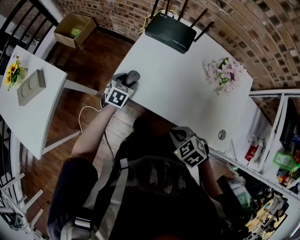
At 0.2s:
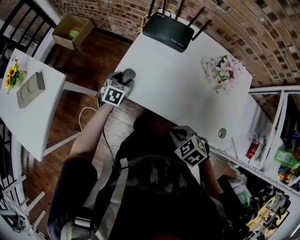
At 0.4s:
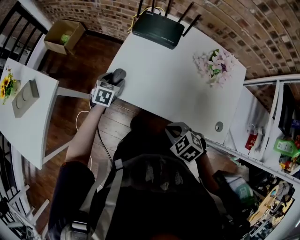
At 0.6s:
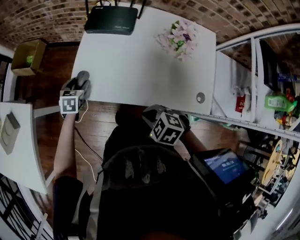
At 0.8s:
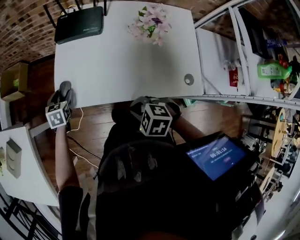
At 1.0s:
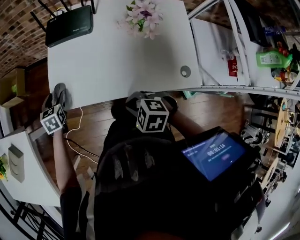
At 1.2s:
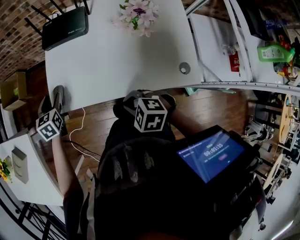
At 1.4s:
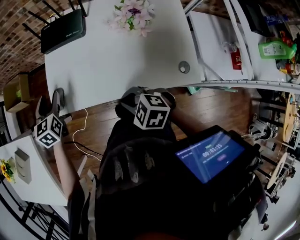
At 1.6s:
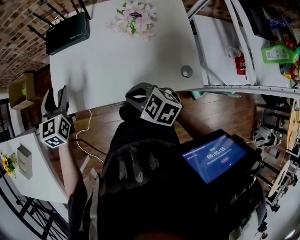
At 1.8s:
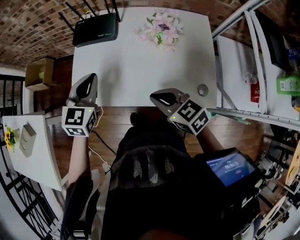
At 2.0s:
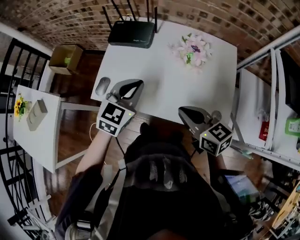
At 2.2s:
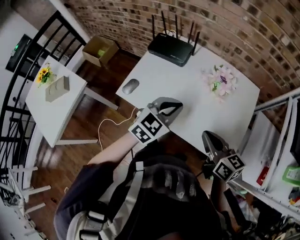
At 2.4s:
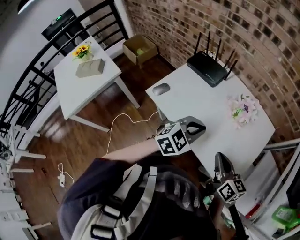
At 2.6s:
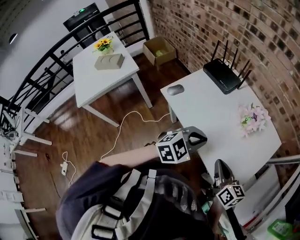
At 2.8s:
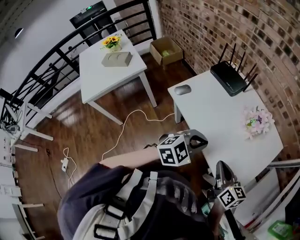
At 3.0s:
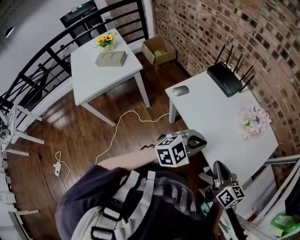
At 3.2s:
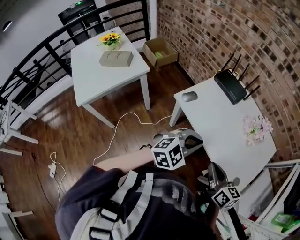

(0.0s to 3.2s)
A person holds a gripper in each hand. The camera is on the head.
0.0s - 1.6s: The right gripper moves to the right and upward, approximately 10 cm, and swivels about 30 degrees, while the left gripper shifts roughly 20 cm upward, and changes its angle by about 20 degrees.
1.6s - 3.2s: The left gripper moves backward, some 25 cm, changes its angle by approximately 20 degrees, and closes its fingers. The right gripper shifts some 15 cm backward and upward, goes to the right and returns, approximately 15 cm each way, and turns by roughly 30 degrees.

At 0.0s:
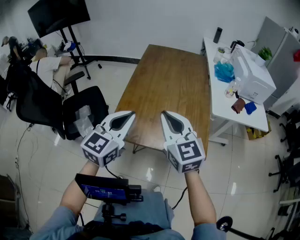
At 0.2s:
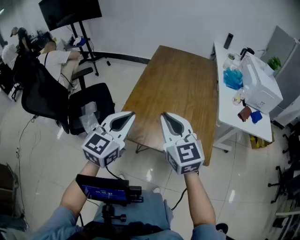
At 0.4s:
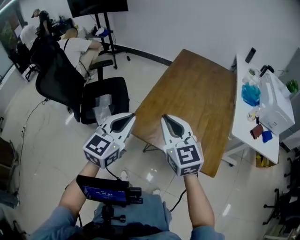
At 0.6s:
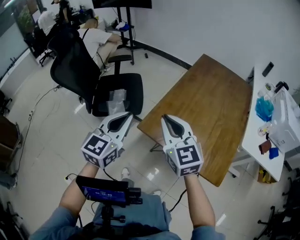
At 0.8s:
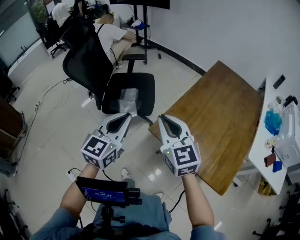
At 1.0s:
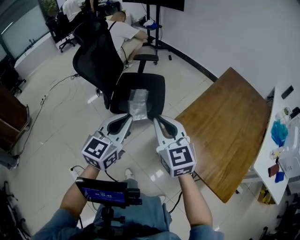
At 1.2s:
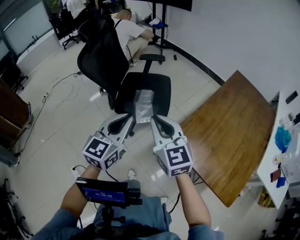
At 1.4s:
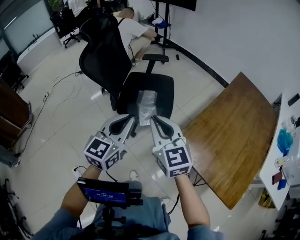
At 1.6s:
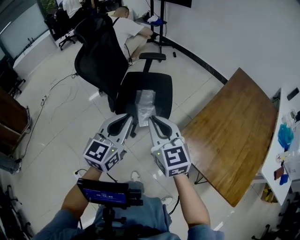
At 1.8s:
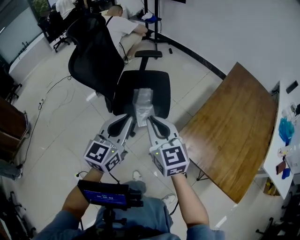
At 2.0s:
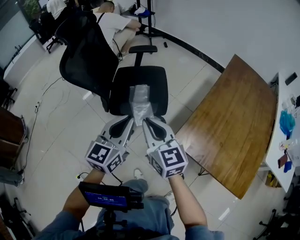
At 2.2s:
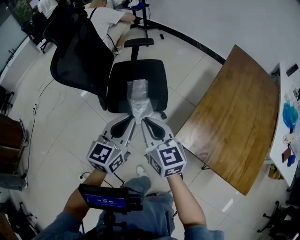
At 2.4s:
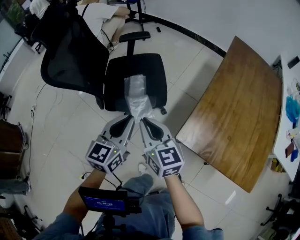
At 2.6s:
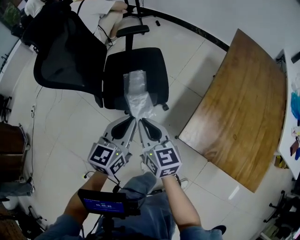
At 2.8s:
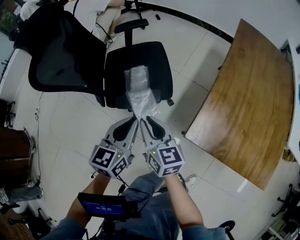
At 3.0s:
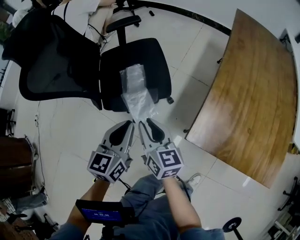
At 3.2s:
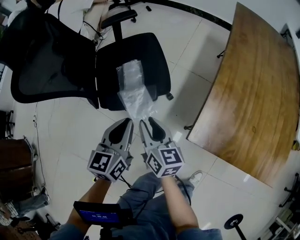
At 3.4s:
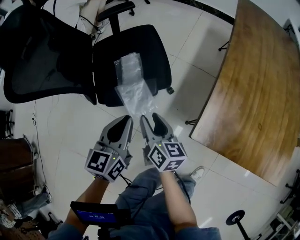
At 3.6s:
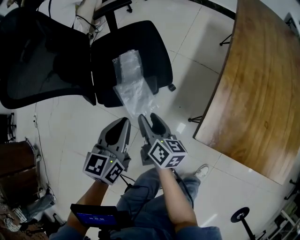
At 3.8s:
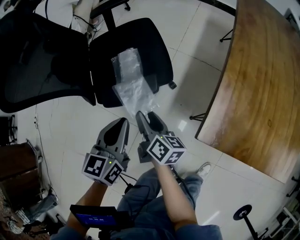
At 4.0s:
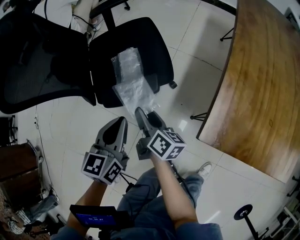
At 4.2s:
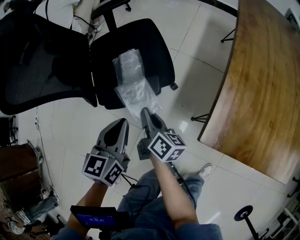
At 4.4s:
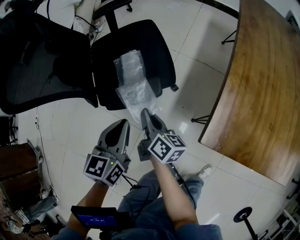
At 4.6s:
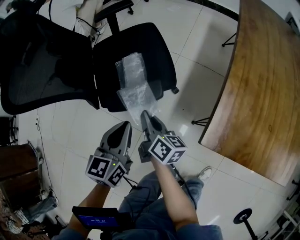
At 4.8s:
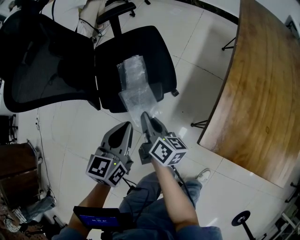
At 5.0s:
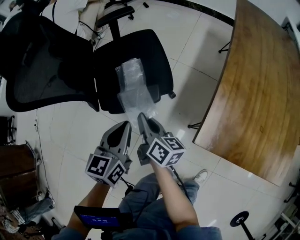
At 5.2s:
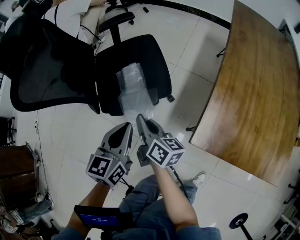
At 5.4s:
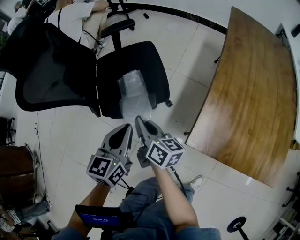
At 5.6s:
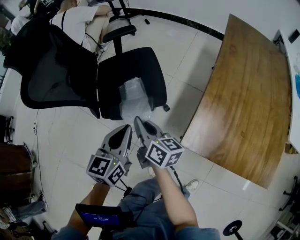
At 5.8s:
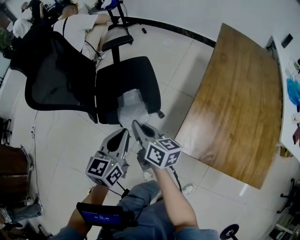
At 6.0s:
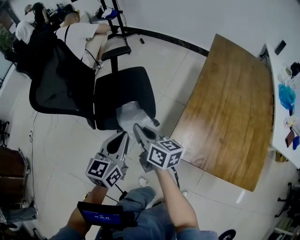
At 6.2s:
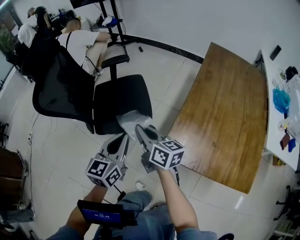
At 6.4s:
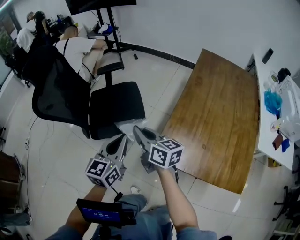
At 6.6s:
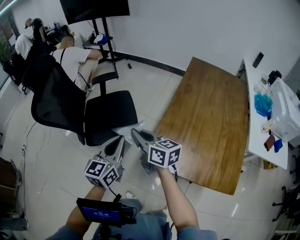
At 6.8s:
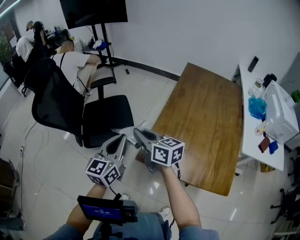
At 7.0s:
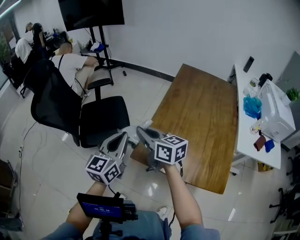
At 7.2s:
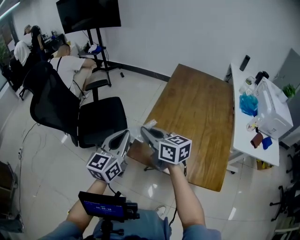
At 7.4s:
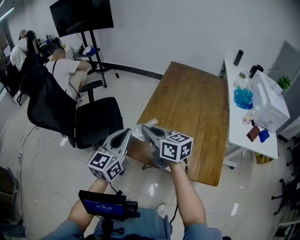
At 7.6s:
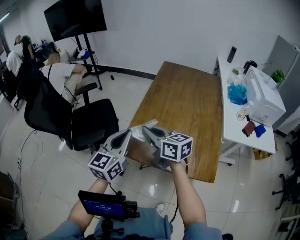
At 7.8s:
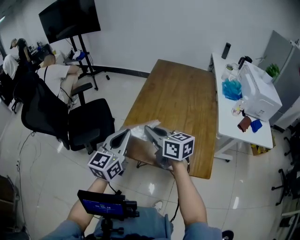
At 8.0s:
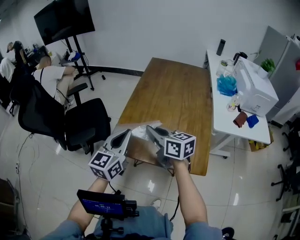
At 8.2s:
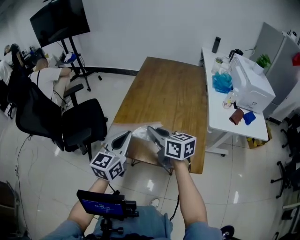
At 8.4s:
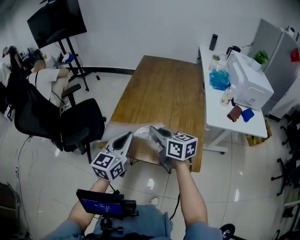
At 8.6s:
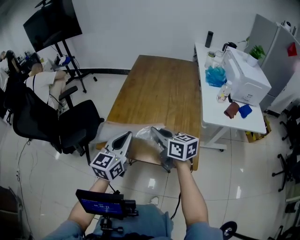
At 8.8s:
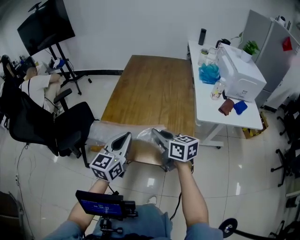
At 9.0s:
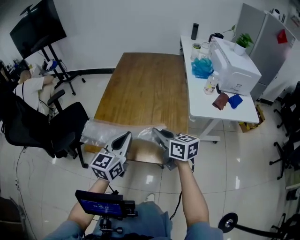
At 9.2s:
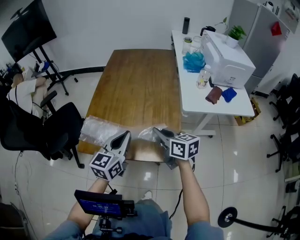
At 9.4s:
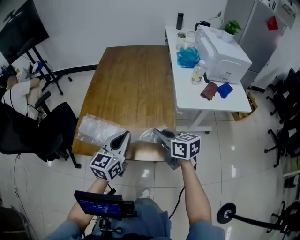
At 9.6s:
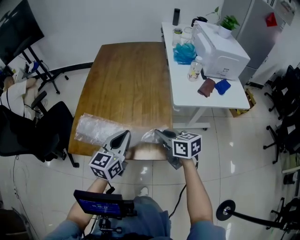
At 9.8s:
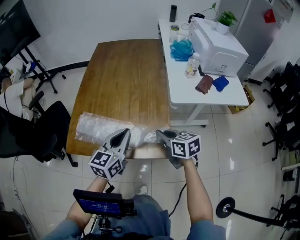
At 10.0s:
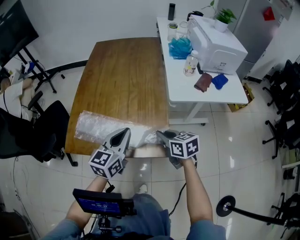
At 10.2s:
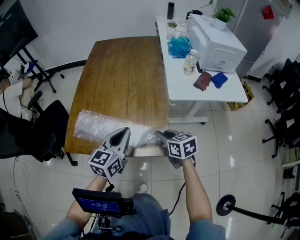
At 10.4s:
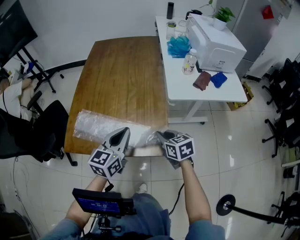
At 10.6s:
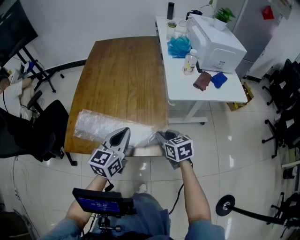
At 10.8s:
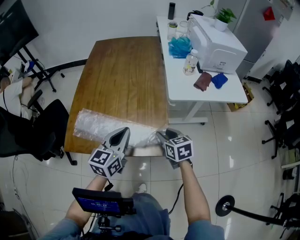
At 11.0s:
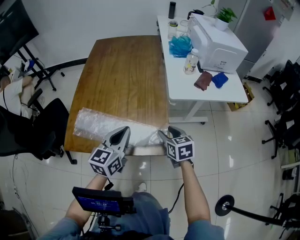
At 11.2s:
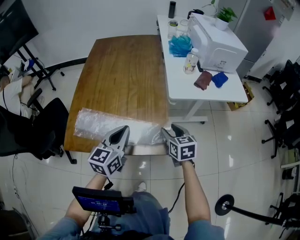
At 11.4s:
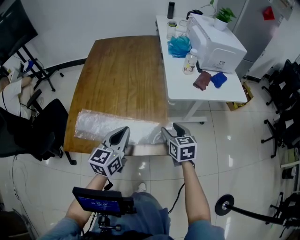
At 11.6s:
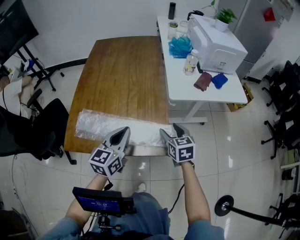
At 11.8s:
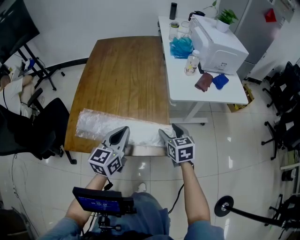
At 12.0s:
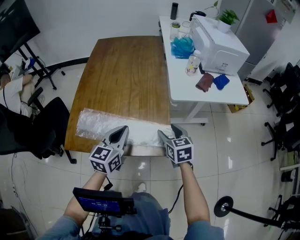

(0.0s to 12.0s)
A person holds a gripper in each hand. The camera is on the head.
0.0s - 1.6s: The right gripper moves about 40 cm, and changes its angle by roughly 30 degrees, while the left gripper ends up about 35 cm from where it was, and changes its angle by some 40 degrees.
1.6s - 3.0s: The right gripper heads downward, covering roughly 25 cm, and turns by about 40 degrees. The left gripper is displaced downward and forward by about 20 cm.
3.0s - 4.4s: The left gripper goes approximately 5 cm downward. Meanwhile the right gripper heads downward, covering about 10 cm, swivels some 30 degrees, and opens and closes again.
4.4s - 6.0s: The left gripper travels upward and to the right by roughly 15 cm. Meanwhile the right gripper shifts approximately 20 cm upward, and changes its angle by about 30 degrees.
6.0s - 7.6s: The right gripper travels to the right, upward and backward by some 30 cm, while the left gripper goes roughly 30 cm to the right and upward.
7.6s - 9.0s: Both grippers move to the right, roughly 20 cm.
9.0s - 10.4s: Both grippers travel together to the right and downward, some 15 cm. The right gripper turns by roughly 20 degrees.
10.4s - 12.0s: The right gripper opens.

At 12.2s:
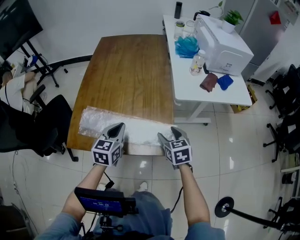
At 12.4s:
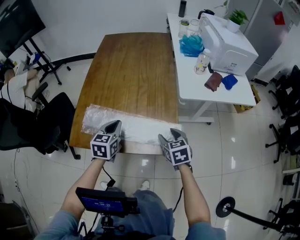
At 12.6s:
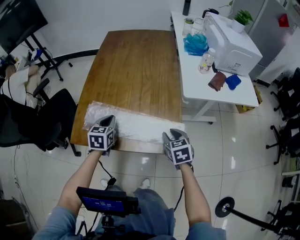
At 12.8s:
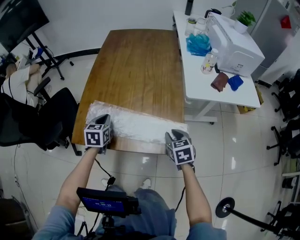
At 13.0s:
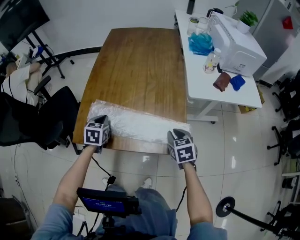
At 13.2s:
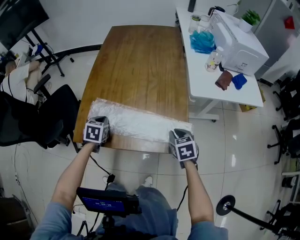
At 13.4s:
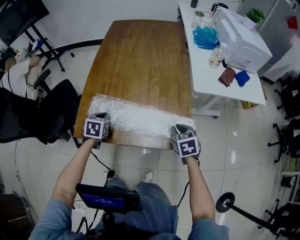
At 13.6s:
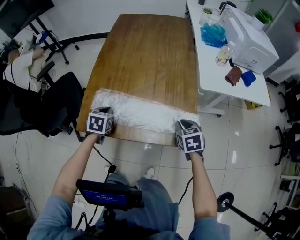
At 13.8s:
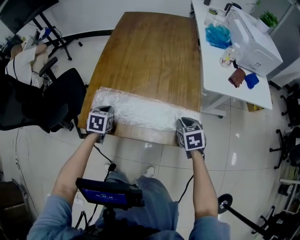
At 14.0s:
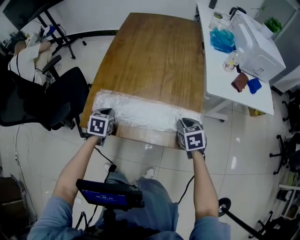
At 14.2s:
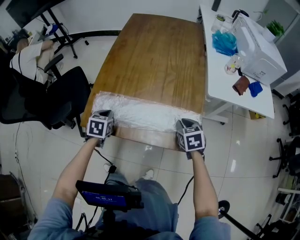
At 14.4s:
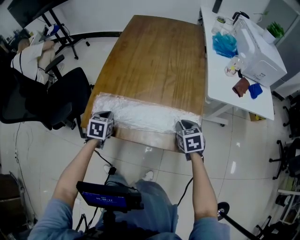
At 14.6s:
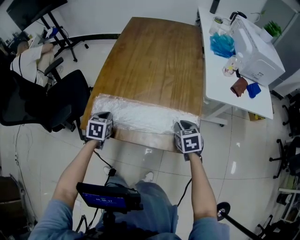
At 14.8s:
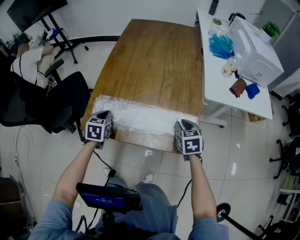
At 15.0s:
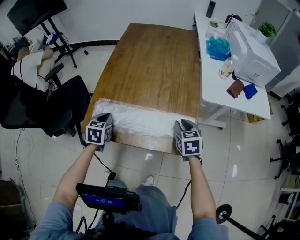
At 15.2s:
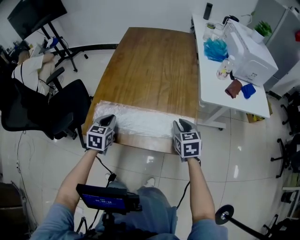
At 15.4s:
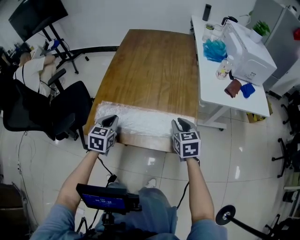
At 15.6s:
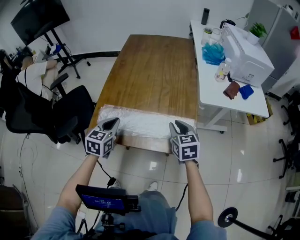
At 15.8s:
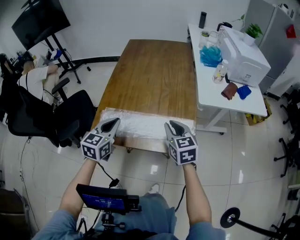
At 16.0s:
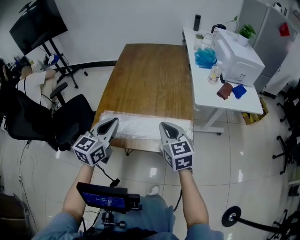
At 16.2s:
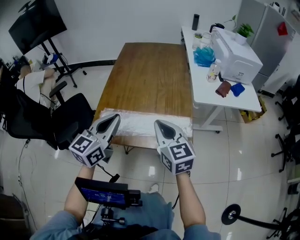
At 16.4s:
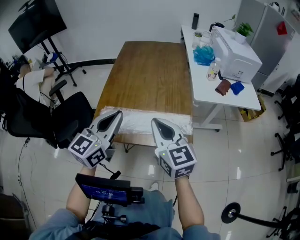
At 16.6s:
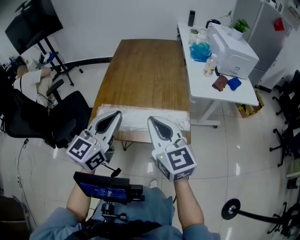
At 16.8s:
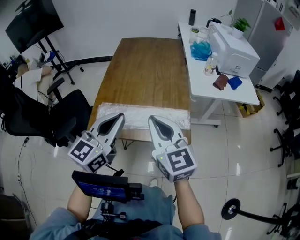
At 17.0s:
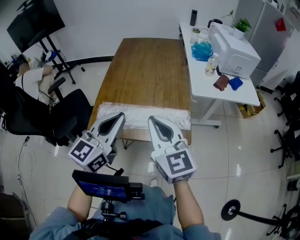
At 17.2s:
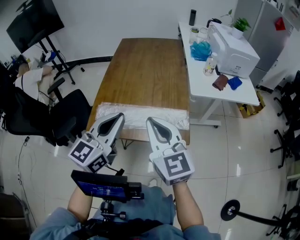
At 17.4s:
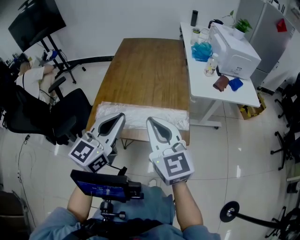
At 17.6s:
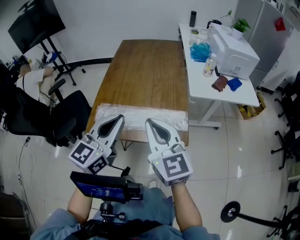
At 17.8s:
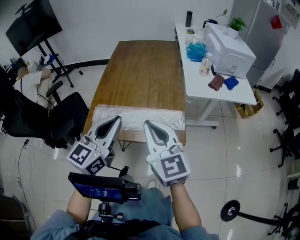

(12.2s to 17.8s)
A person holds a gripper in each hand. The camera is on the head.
12.2s - 13.6s: The left gripper heads to the left and downward, covering approximately 20 cm, and changes its angle by about 30 degrees, while the right gripper shifts by about 5 cm, and closes.
13.6s - 15.0s: The right gripper ends up about 5 cm from where it was.
15.0s - 16.4s: The left gripper goes about 25 cm upward, and points its fingers roughly 40 degrees further upward, while the right gripper goes some 30 cm upward, to the left and backward, and tilts its fingers approximately 40 degrees upward.
16.4s - 17.8s: The left gripper shifts by some 5 cm; the right gripper shifts by about 5 cm.

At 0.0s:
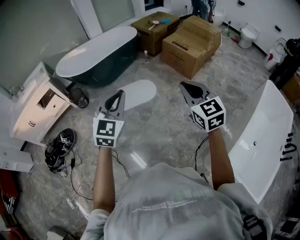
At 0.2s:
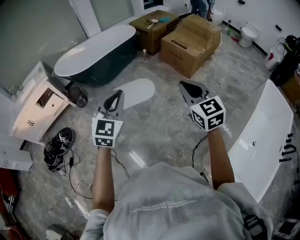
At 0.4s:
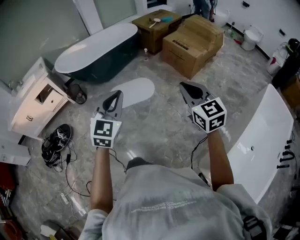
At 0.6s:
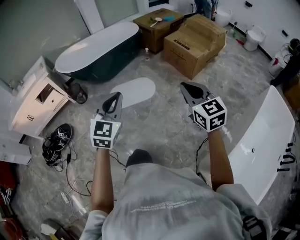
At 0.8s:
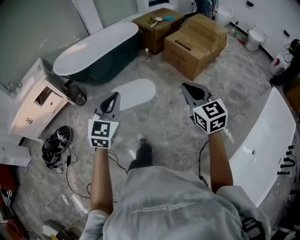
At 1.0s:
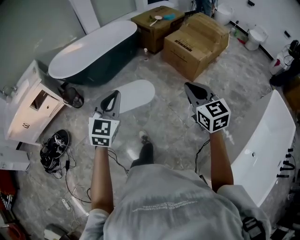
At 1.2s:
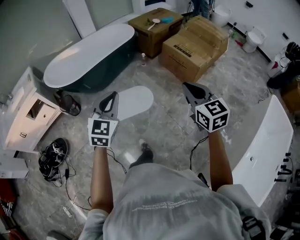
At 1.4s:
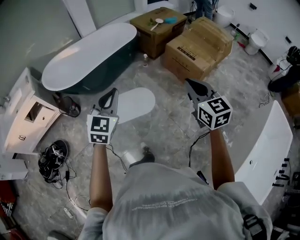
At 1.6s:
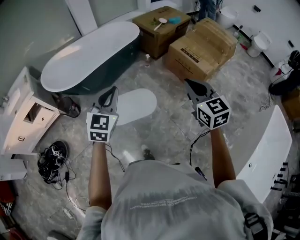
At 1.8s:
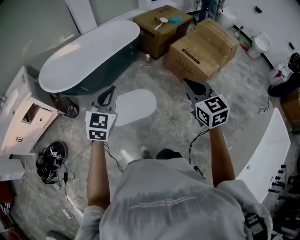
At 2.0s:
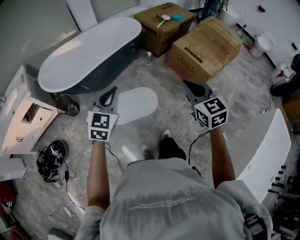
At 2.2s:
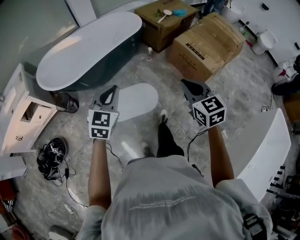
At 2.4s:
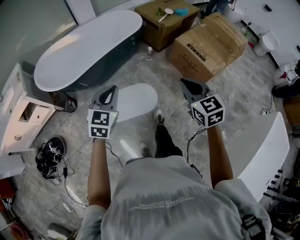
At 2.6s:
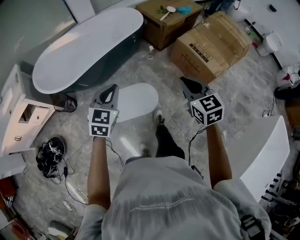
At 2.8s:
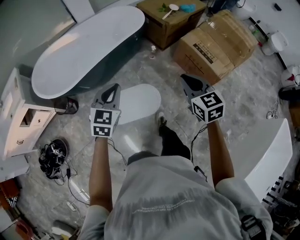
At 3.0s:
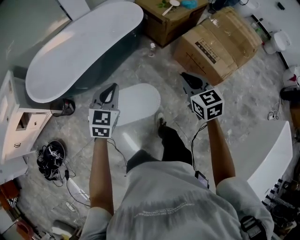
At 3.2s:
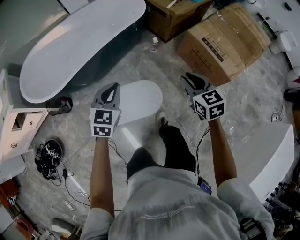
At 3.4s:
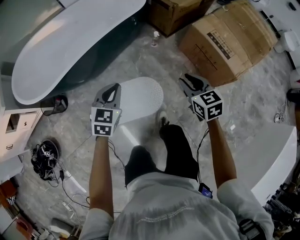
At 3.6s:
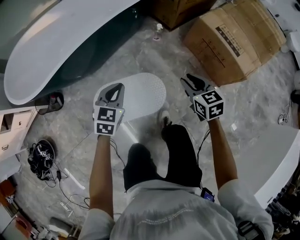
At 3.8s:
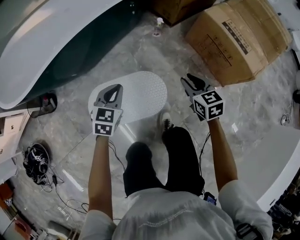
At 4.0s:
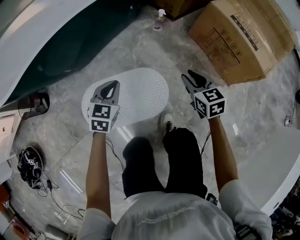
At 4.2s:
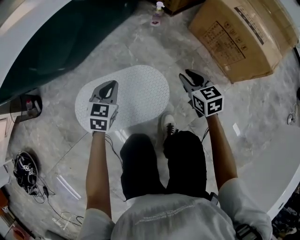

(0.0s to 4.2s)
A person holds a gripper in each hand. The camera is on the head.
0.0s - 1.4s: The two grippers go about 35 cm forward.
1.4s - 2.8s: Both grippers move forward and downward, approximately 30 cm.
2.8s - 4.2s: Both grippers move downward, roughly 60 cm.
